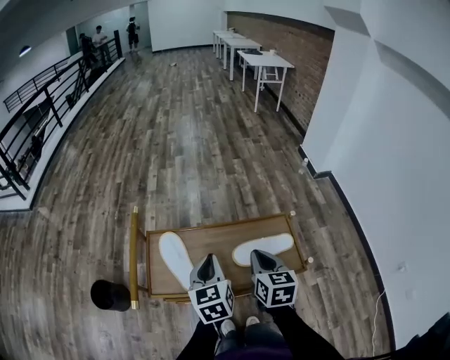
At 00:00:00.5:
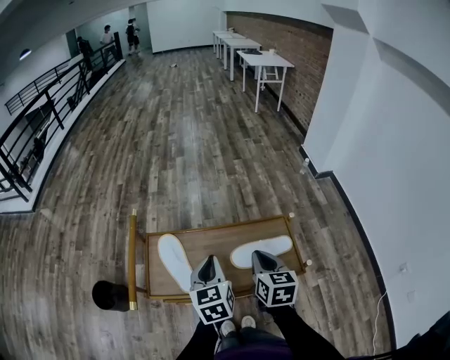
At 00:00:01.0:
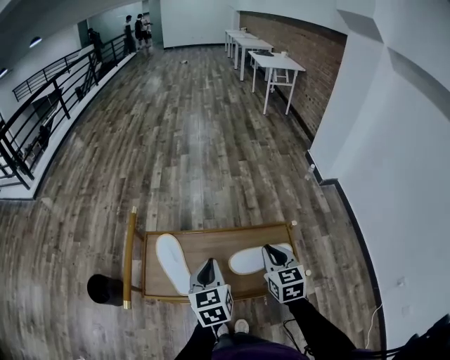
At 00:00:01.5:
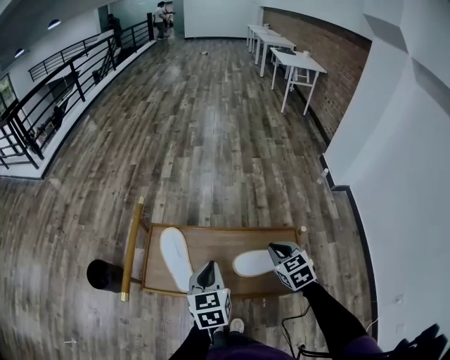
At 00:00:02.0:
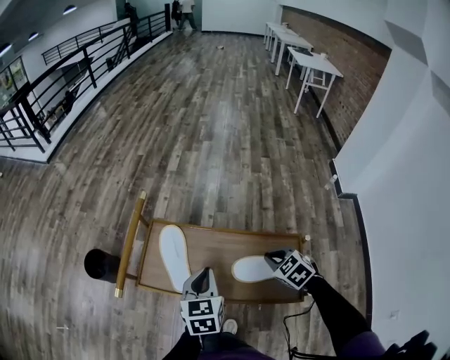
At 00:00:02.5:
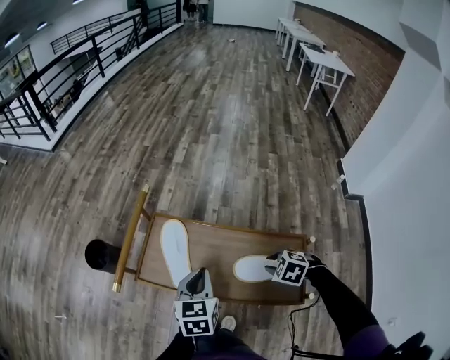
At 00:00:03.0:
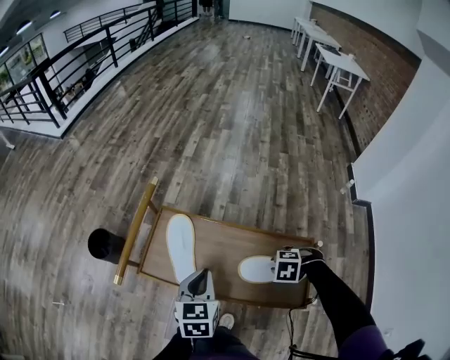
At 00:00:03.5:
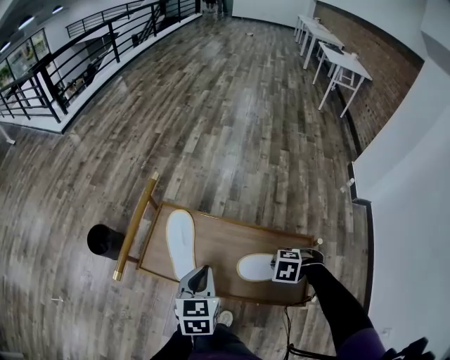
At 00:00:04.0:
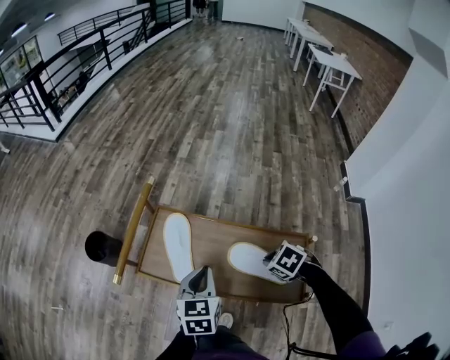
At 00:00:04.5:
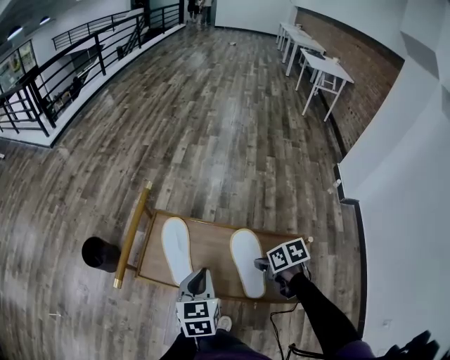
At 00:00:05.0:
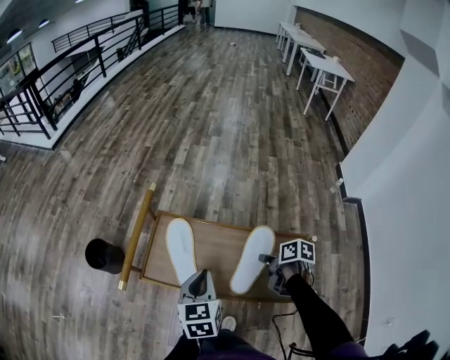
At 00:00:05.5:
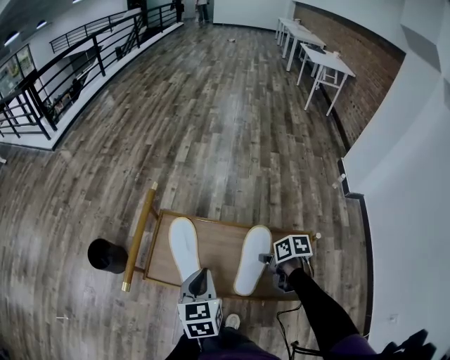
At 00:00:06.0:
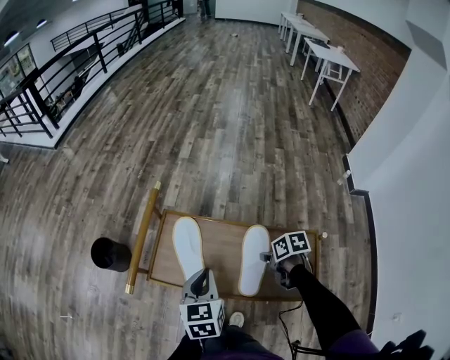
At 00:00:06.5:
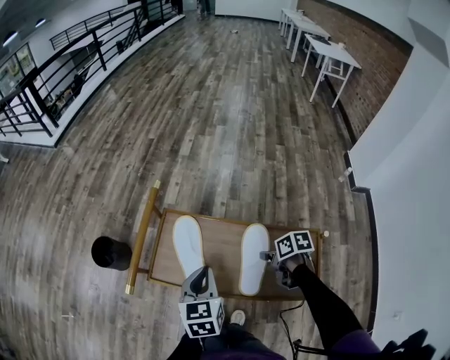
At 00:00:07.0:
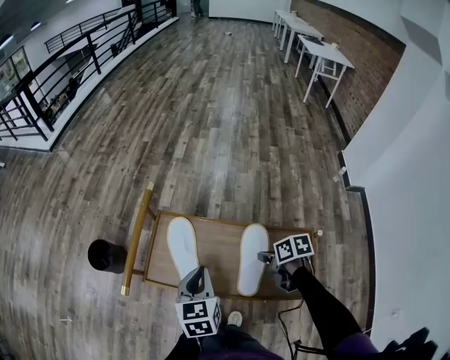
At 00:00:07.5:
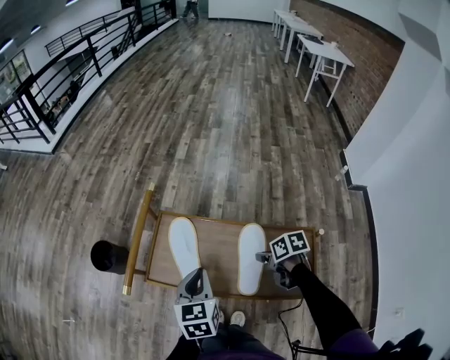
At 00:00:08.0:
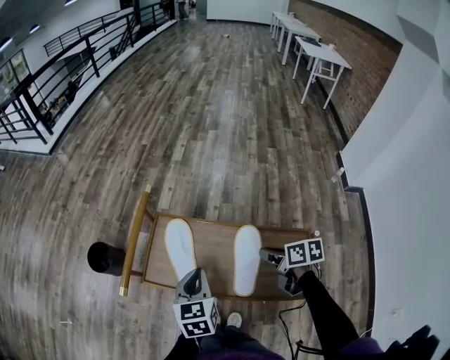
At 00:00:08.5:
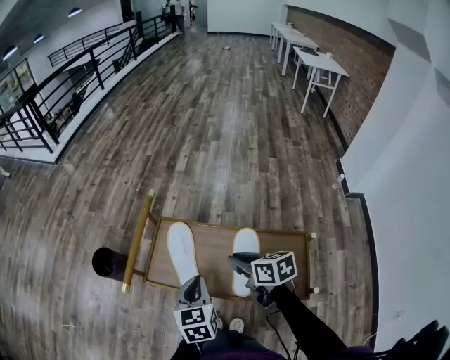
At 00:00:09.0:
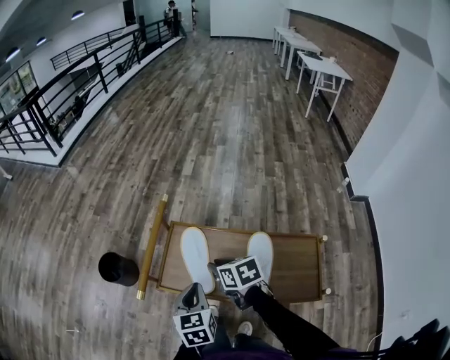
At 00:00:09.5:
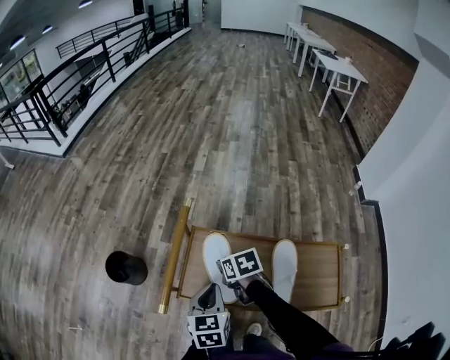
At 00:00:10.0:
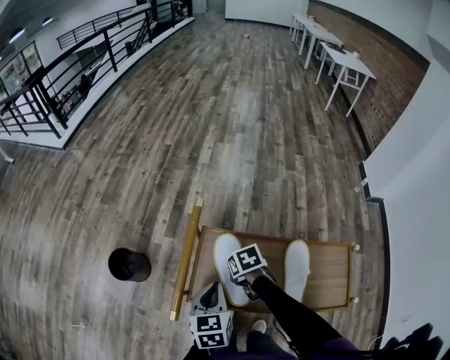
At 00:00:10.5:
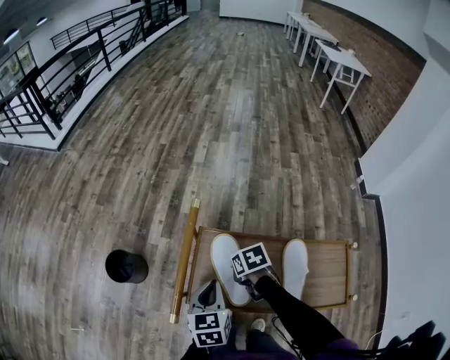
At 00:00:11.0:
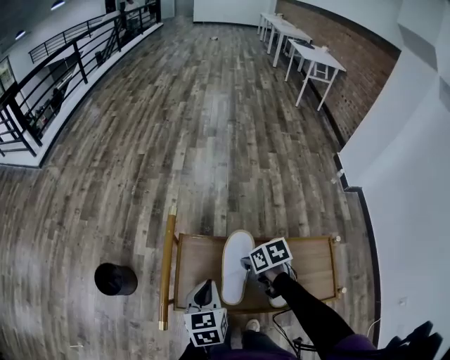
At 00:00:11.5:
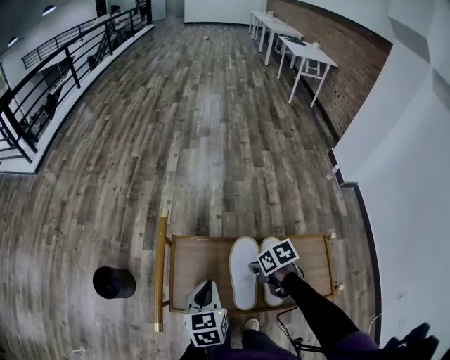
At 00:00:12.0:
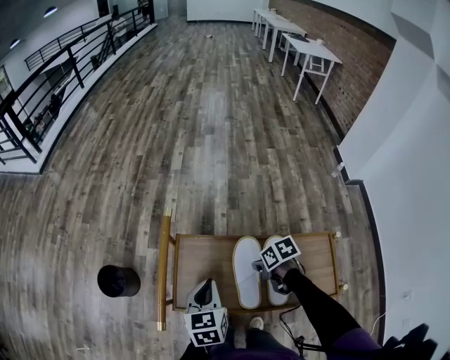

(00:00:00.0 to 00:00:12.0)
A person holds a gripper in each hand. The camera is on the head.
00:00:00.0 - 00:00:02.0: The right gripper shifts roughly 15 cm downward, forward and to the right, and turns by some 60 degrees.
00:00:02.0 - 00:00:04.0: The right gripper turns by roughly 30 degrees.
00:00:04.0 - 00:00:06.0: The right gripper shifts by about 5 cm, and rolls clockwise, seen from behind, by about 60 degrees.
00:00:06.0 - 00:00:08.0: The right gripper shifts roughly 5 cm upward.
00:00:08.0 - 00:00:10.0: The right gripper moves to the left and forward, about 30 cm, and rotates some 30 degrees. Meanwhile the left gripper moves to the left and forward, approximately 15 cm.
00:00:10.0 - 00:00:12.0: The left gripper shifts roughly 5 cm to the right; the right gripper is displaced to the right and backward by some 15 cm.

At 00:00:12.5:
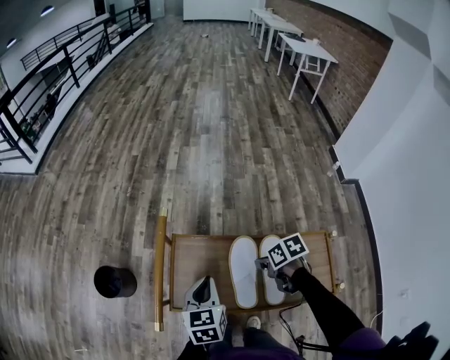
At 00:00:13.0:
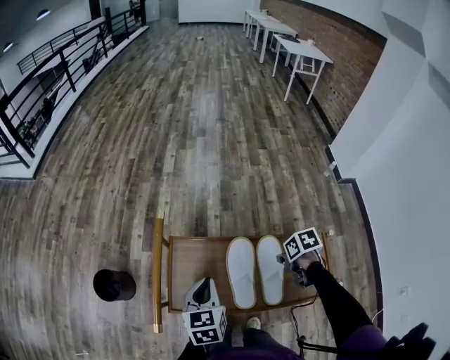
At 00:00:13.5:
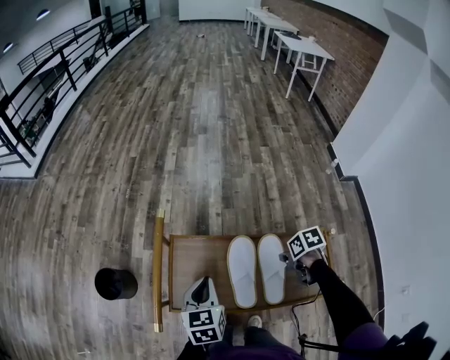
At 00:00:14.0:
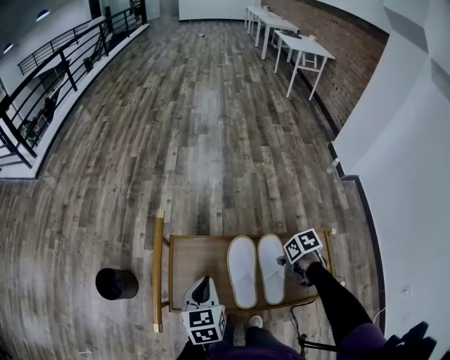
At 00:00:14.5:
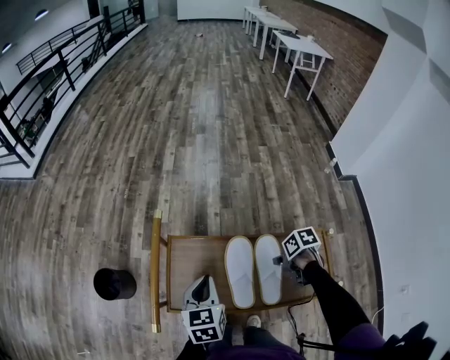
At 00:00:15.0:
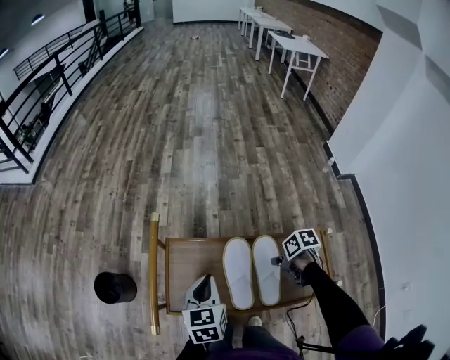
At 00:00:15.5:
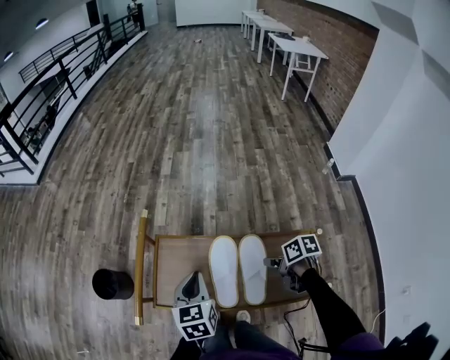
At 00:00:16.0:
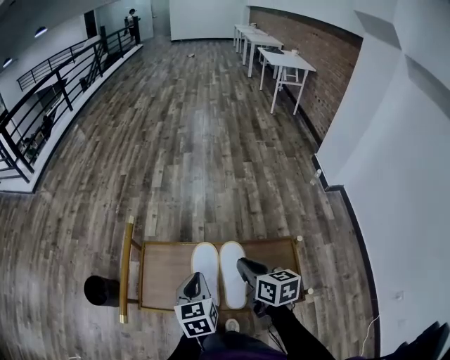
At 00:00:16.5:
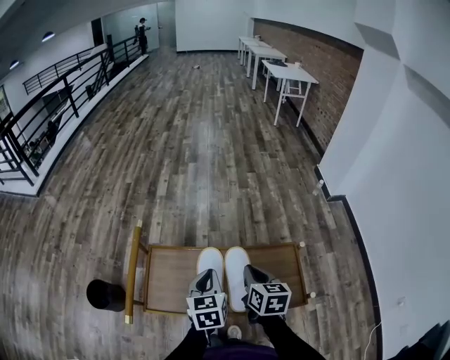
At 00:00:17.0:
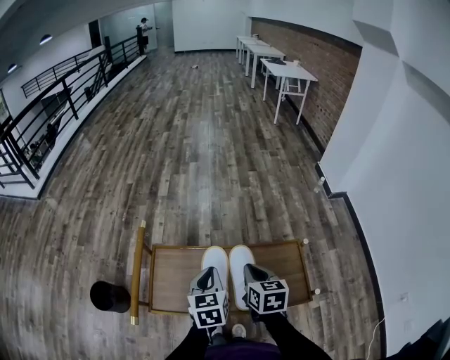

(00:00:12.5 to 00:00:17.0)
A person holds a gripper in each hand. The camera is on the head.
00:00:12.5 - 00:00:14.5: The right gripper heads to the right and backward, covering roughly 10 cm.
00:00:14.5 - 00:00:17.0: The left gripper shifts by approximately 10 cm. The right gripper goes some 15 cm upward, and tilts its fingers approximately 30 degrees upward.

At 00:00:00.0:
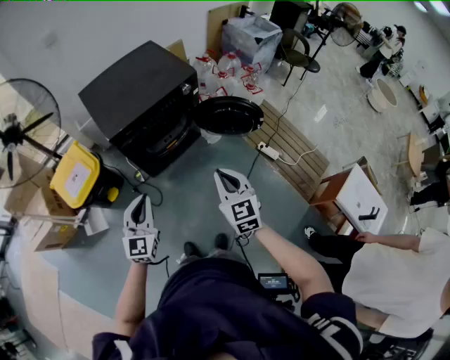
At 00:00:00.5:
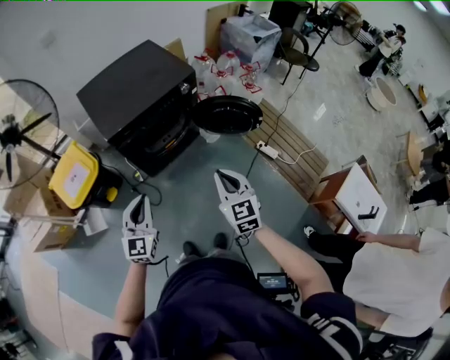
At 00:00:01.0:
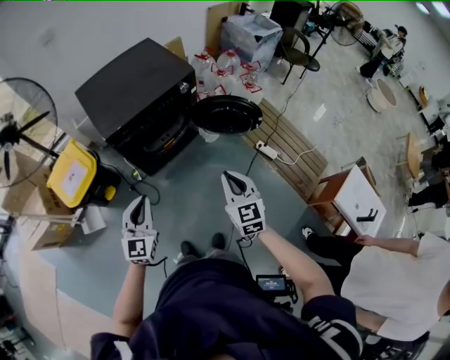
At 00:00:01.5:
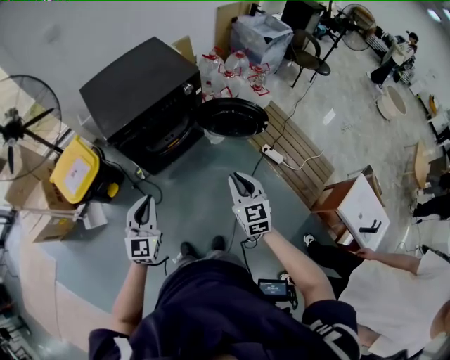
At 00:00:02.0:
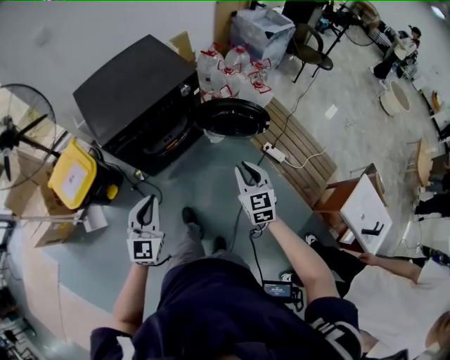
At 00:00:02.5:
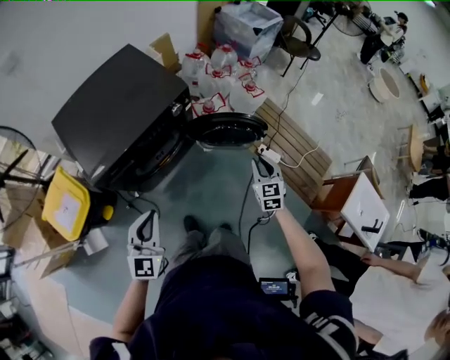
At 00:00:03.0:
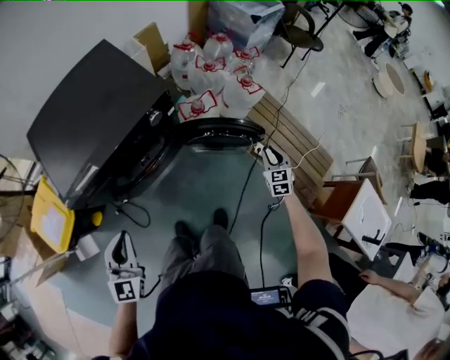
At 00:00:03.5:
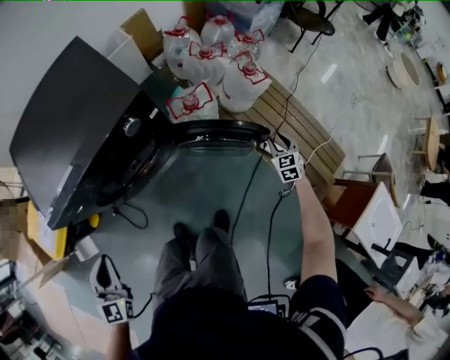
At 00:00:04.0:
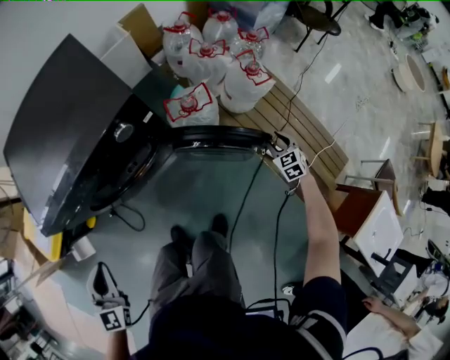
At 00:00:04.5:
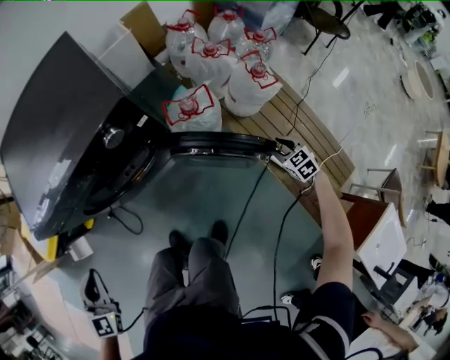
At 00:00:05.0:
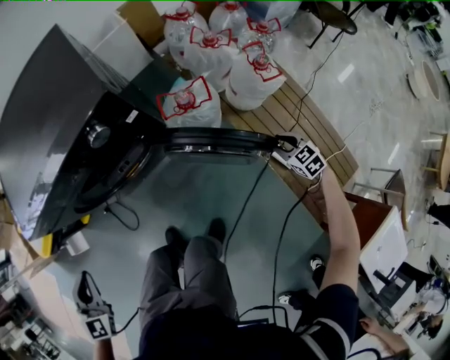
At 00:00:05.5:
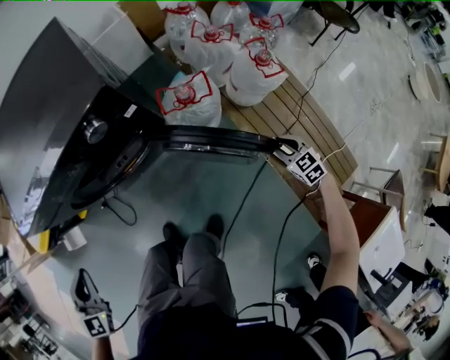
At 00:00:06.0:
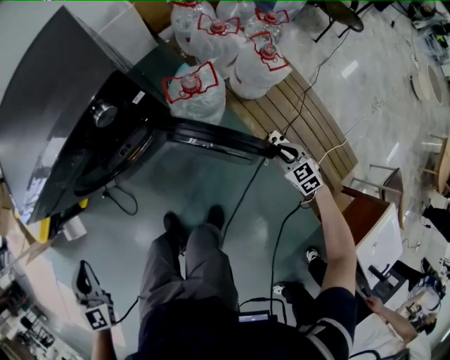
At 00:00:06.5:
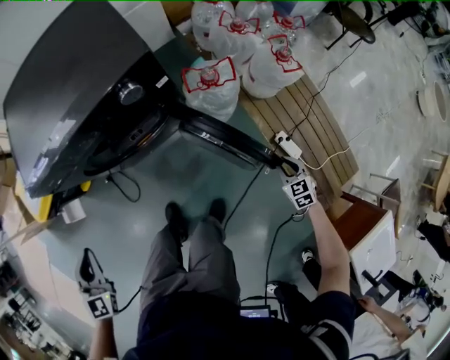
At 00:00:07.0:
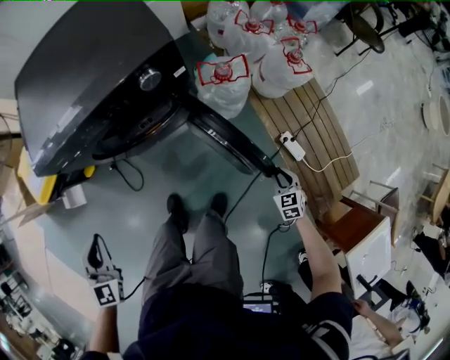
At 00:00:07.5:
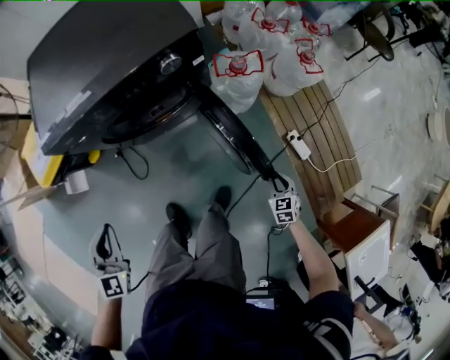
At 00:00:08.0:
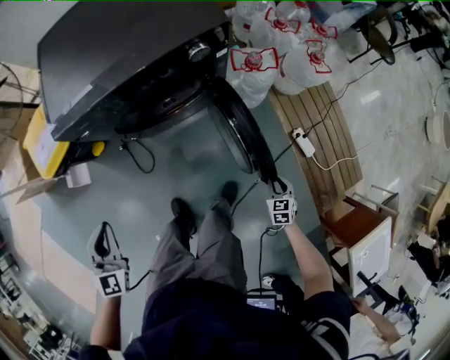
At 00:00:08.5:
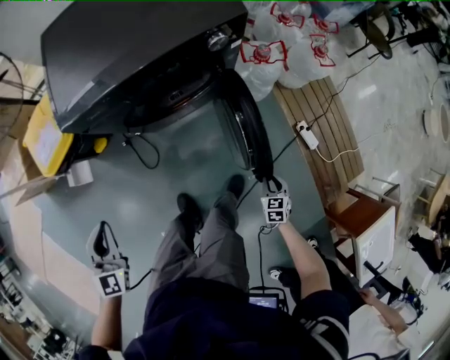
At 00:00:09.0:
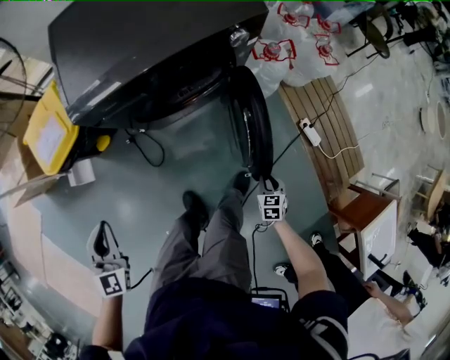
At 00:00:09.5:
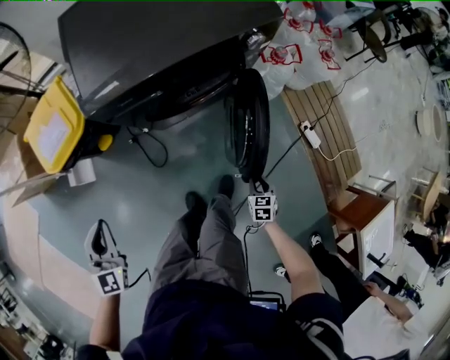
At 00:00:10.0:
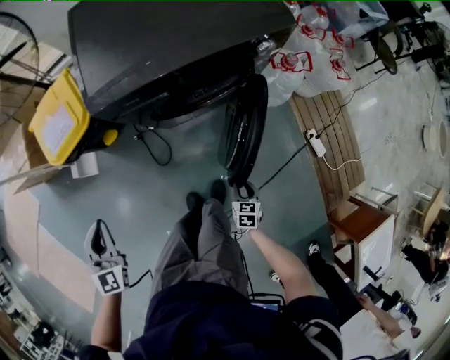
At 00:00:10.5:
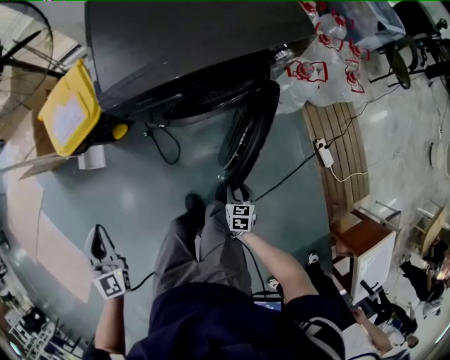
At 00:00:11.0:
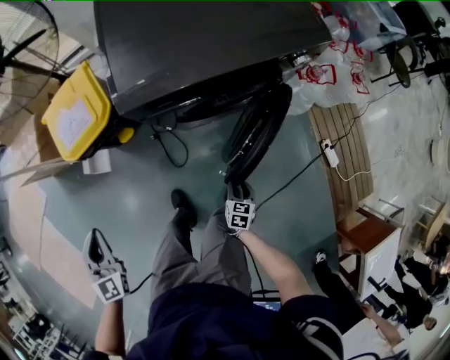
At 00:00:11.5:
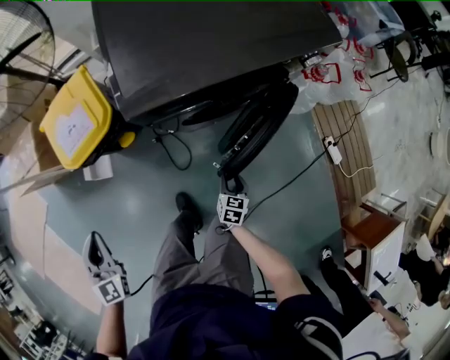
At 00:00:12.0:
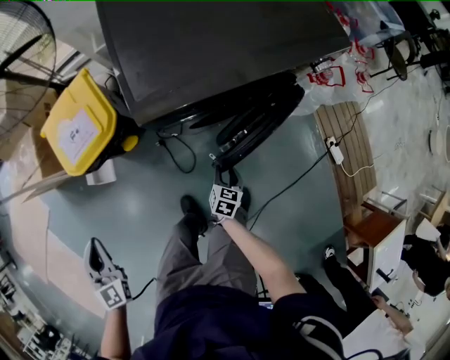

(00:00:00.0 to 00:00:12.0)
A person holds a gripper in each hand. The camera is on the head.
00:00:00.0 - 00:00:02.0: The right gripper heads to the right, forward and downward, covering approximately 20 cm. The left gripper moves to the right and forward, about 10 cm.
00:00:02.0 - 00:00:04.0: The right gripper is displaced forward, downward and to the right by some 70 cm, changes its angle by approximately 20 degrees, and opens up. Meanwhile the left gripper heads forward and downward, covering roughly 30 cm, and turns by some 20 degrees.
00:00:04.0 - 00:00:06.0: The right gripper moves downward, about 5 cm.
00:00:06.0 - 00:00:08.0: The right gripper travels to the left and backward by some 25 cm, while the left gripper moves to the left and backward, about 15 cm.
00:00:08.0 - 00:00:10.0: The right gripper is displaced to the left by approximately 30 cm; the left gripper is displaced to the left by approximately 20 cm.
00:00:10.0 - 00:00:12.0: The left gripper goes approximately 20 cm to the left. Meanwhile the right gripper heads to the left and forward, covering about 25 cm.
